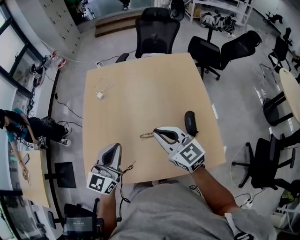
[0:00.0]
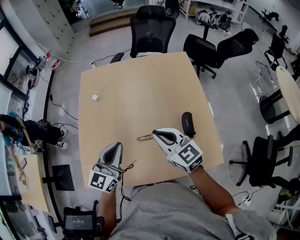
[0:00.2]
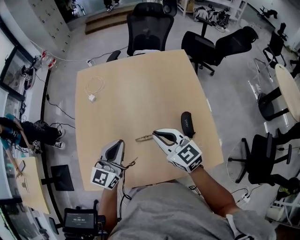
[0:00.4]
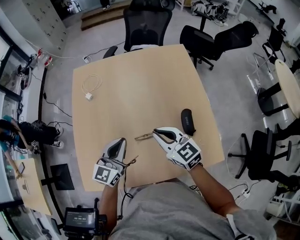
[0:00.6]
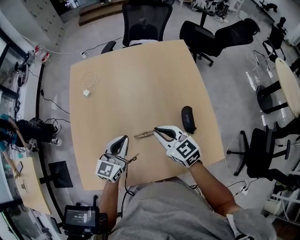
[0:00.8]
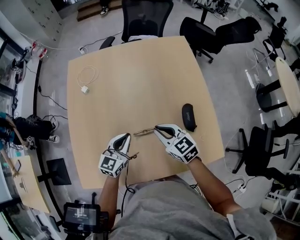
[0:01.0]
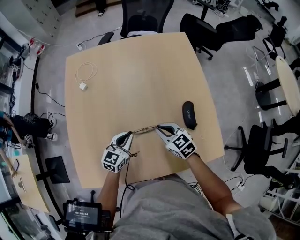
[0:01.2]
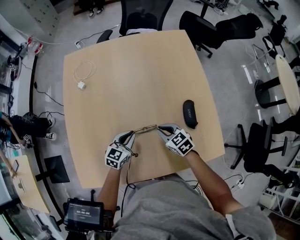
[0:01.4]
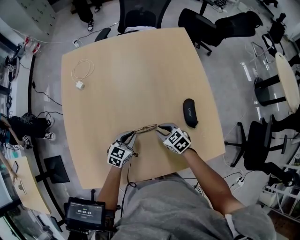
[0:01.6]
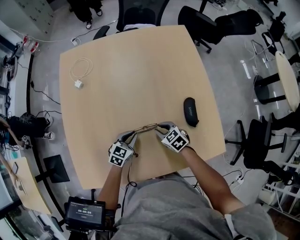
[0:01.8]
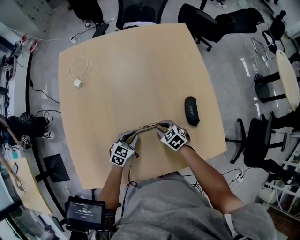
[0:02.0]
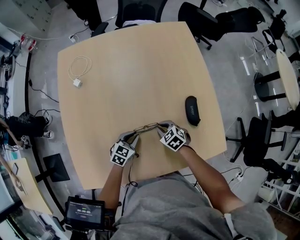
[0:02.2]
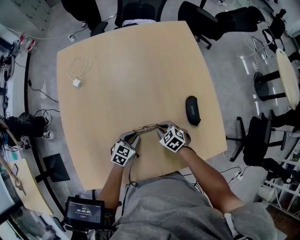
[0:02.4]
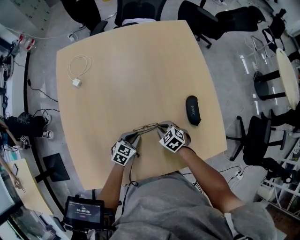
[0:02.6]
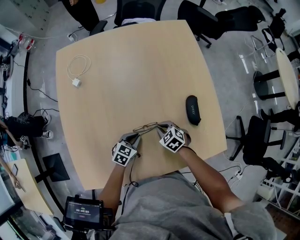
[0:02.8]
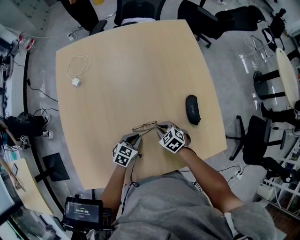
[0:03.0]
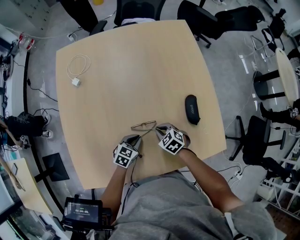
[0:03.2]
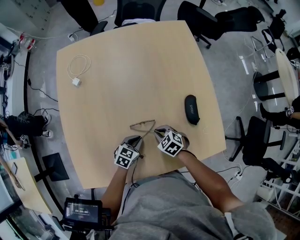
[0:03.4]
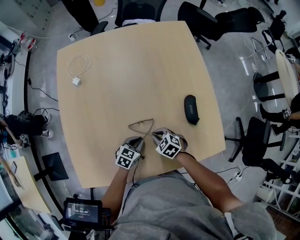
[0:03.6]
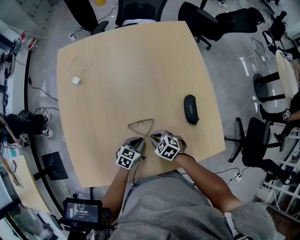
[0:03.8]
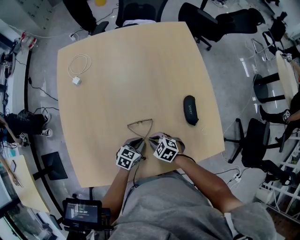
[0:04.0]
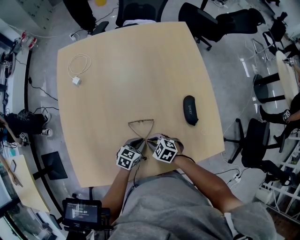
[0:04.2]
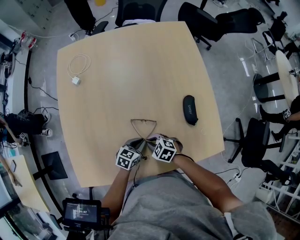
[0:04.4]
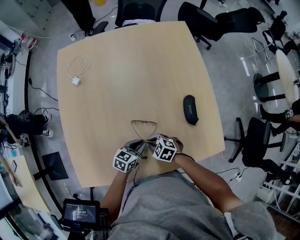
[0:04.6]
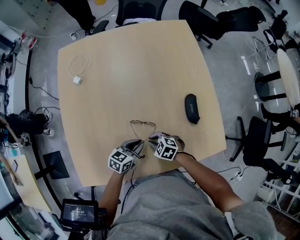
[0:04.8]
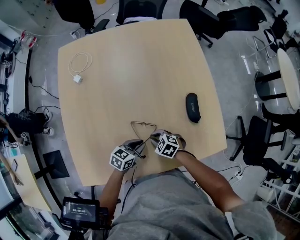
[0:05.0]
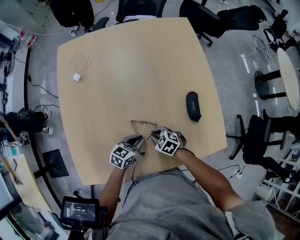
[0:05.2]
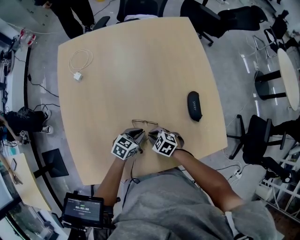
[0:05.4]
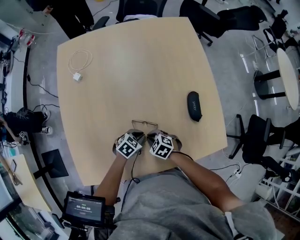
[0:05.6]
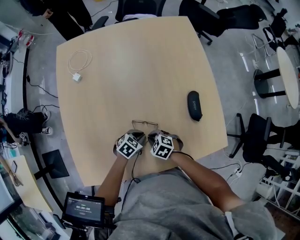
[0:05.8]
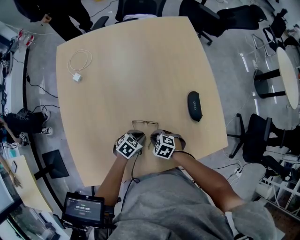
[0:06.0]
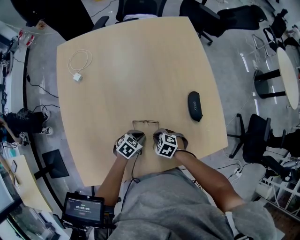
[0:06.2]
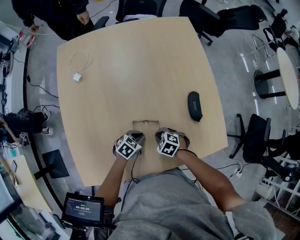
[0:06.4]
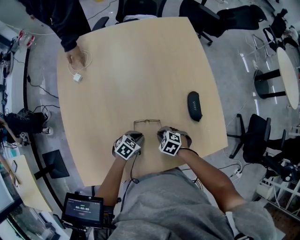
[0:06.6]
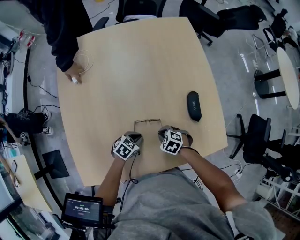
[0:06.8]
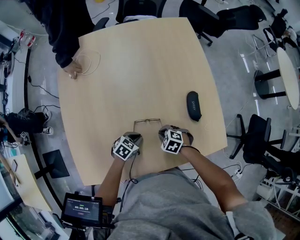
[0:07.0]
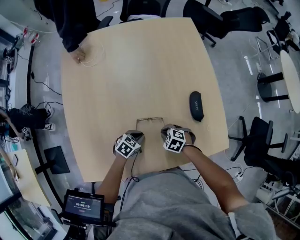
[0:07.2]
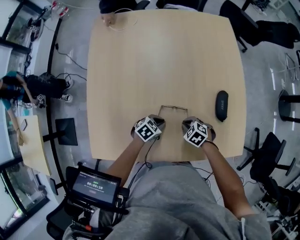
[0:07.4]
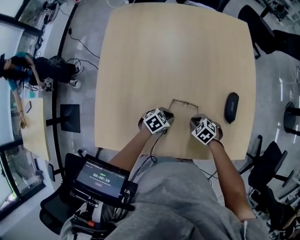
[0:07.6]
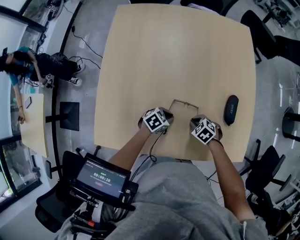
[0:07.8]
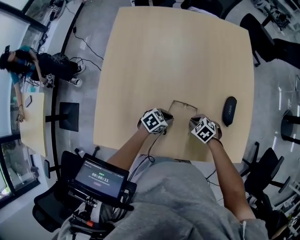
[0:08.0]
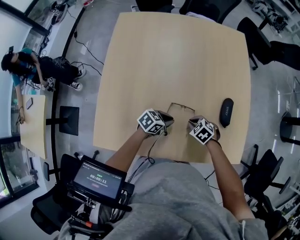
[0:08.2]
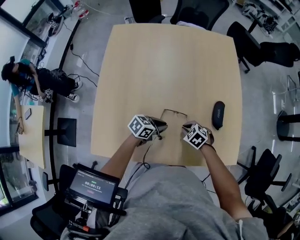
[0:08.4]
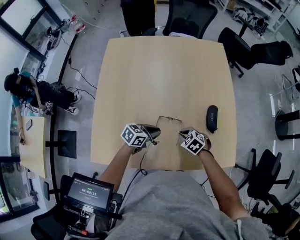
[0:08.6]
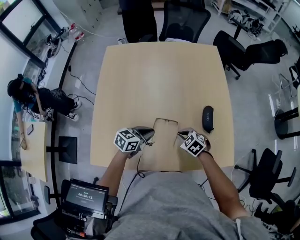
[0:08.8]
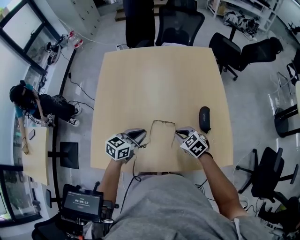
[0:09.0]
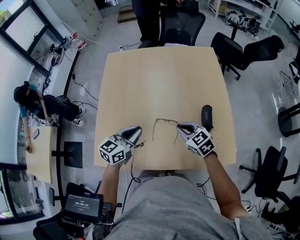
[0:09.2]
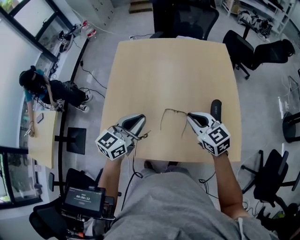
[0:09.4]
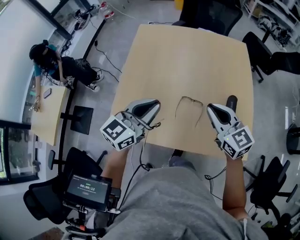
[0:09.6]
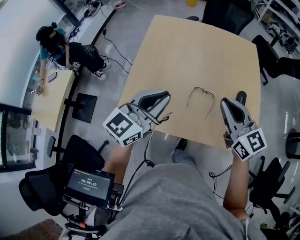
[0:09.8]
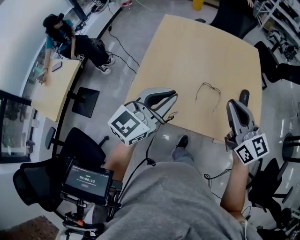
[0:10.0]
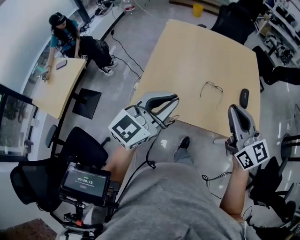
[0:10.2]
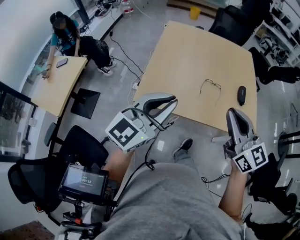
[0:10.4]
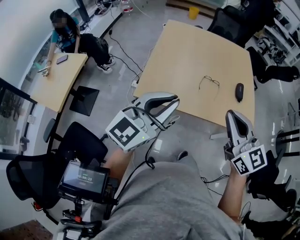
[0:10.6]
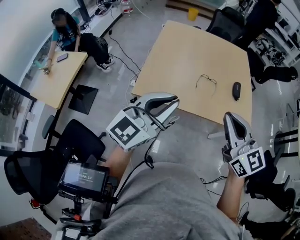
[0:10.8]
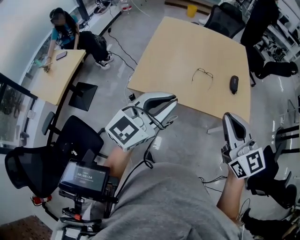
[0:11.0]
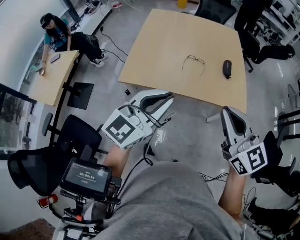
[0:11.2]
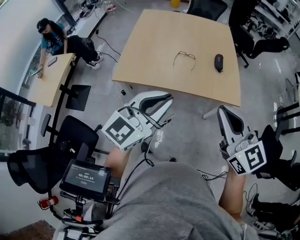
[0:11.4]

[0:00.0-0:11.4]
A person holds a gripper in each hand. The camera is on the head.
0:00.0 to 0:01.4: Both grippers move downward, about 25 cm. The left gripper swivels about 30 degrees. The right gripper angles its fingers downward, by roughly 30 degrees.
0:01.4 to 0:02.8: The two grippers go roughly 10 cm downward.
0:02.8 to 0:04.2: The left gripper changes place by approximately 5 cm; the right gripper shifts by approximately 10 cm.
0:04.2 to 0:05.6: The left gripper turns by about 20 degrees.
0:05.6 to 0:07.2: The right gripper ends up about 10 cm from where it was.
0:07.2 to 0:08.6: The left gripper travels upward by roughly 10 cm, and rotates roughly 20 degrees; the right gripper heads upward, covering approximately 5 cm.
0:08.6 to 0:10.0: The two grippers go some 35 cm upward. The left gripper changes its angle by approximately 50 degrees. Meanwhile the right gripper tips its fingers upward by some 60 degrees.
0:10.0 to 0:11.4: The right gripper shifts some 35 cm backward, while the left gripper moves backward and to the right, roughly 30 cm.

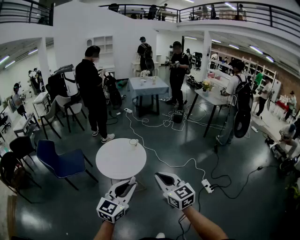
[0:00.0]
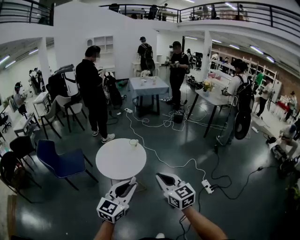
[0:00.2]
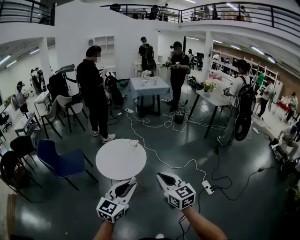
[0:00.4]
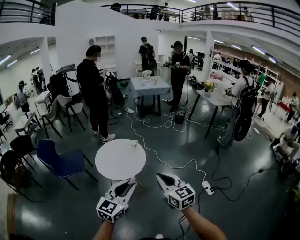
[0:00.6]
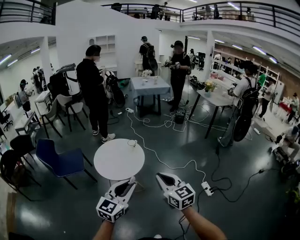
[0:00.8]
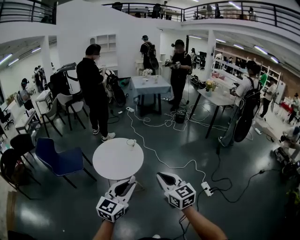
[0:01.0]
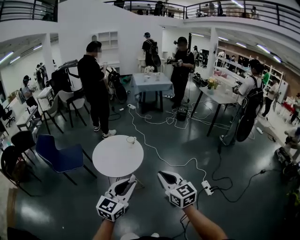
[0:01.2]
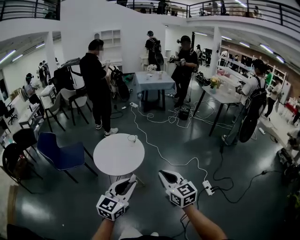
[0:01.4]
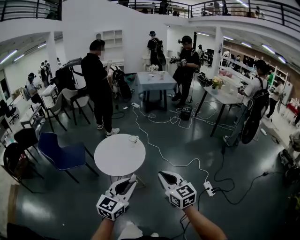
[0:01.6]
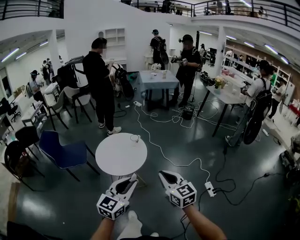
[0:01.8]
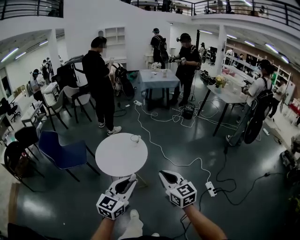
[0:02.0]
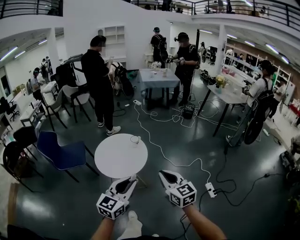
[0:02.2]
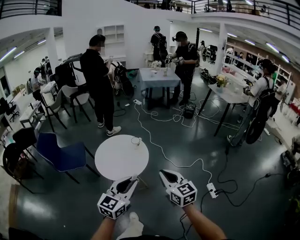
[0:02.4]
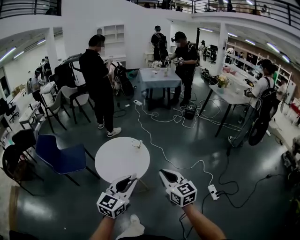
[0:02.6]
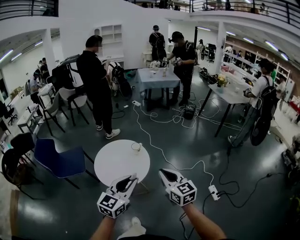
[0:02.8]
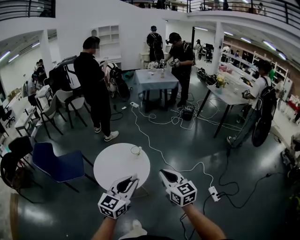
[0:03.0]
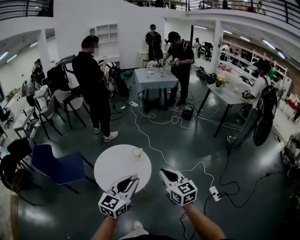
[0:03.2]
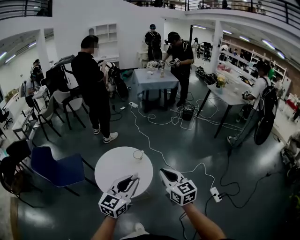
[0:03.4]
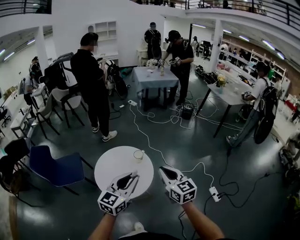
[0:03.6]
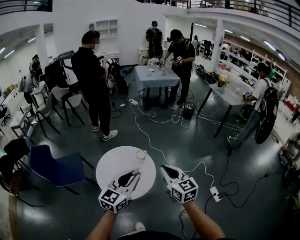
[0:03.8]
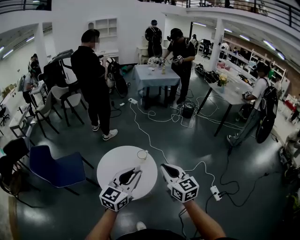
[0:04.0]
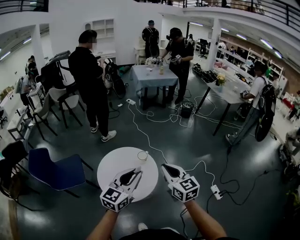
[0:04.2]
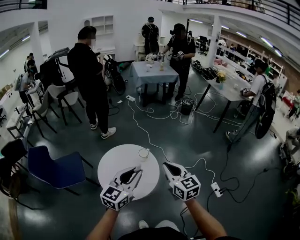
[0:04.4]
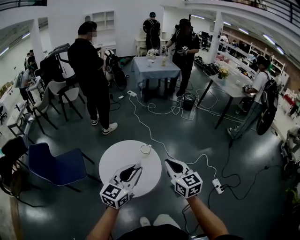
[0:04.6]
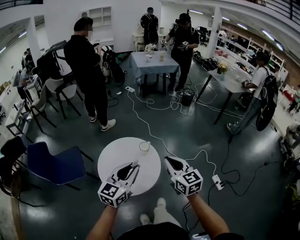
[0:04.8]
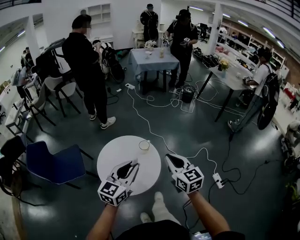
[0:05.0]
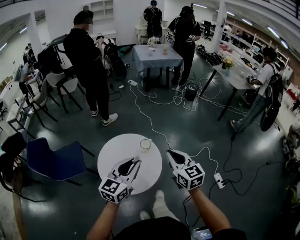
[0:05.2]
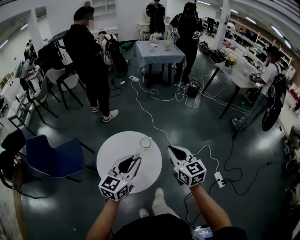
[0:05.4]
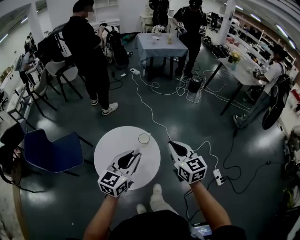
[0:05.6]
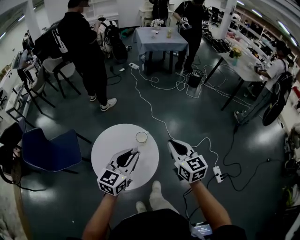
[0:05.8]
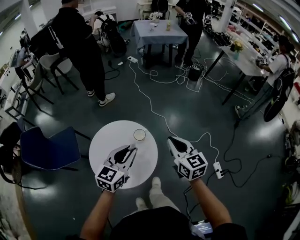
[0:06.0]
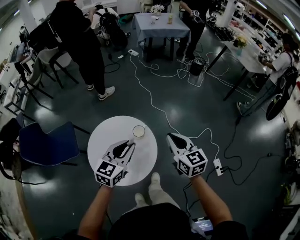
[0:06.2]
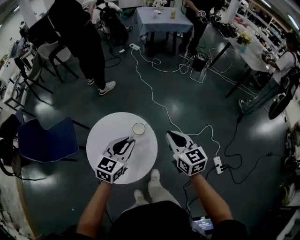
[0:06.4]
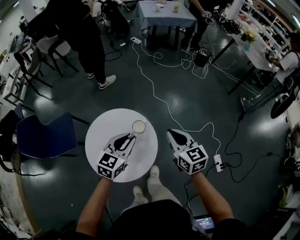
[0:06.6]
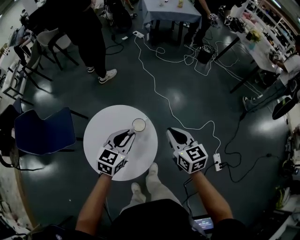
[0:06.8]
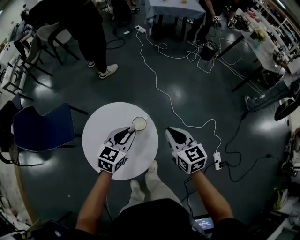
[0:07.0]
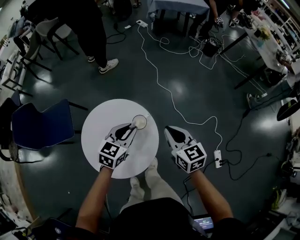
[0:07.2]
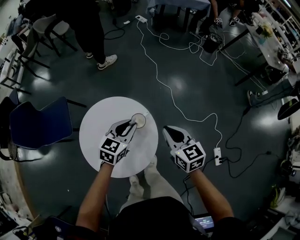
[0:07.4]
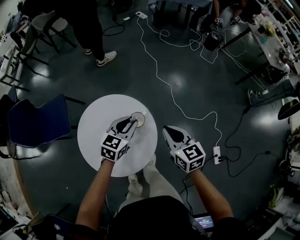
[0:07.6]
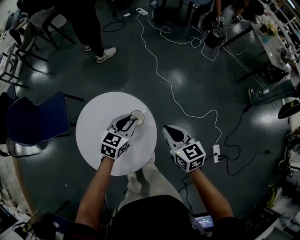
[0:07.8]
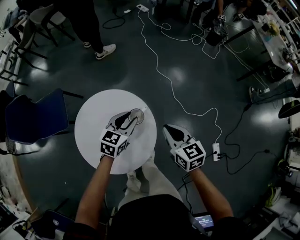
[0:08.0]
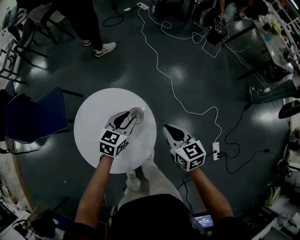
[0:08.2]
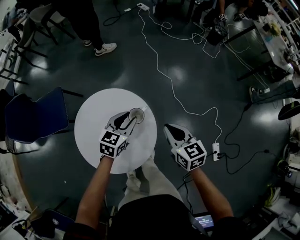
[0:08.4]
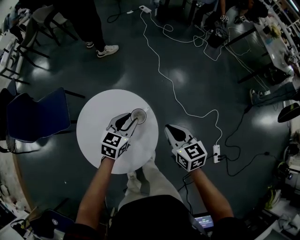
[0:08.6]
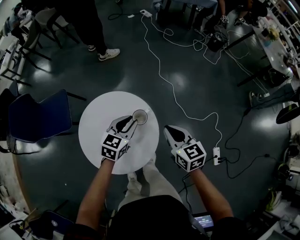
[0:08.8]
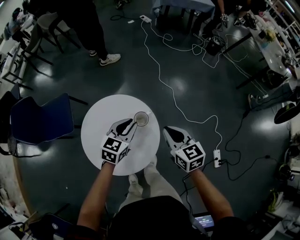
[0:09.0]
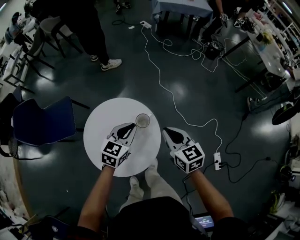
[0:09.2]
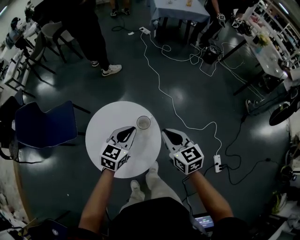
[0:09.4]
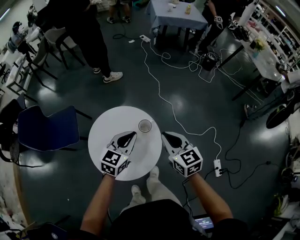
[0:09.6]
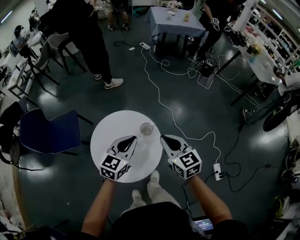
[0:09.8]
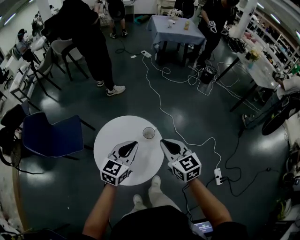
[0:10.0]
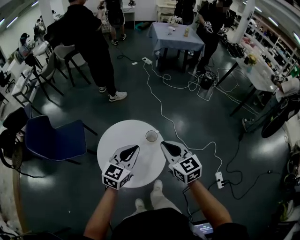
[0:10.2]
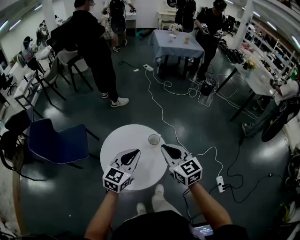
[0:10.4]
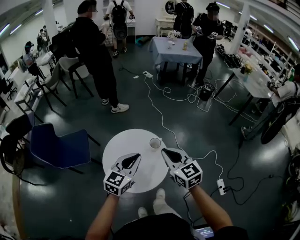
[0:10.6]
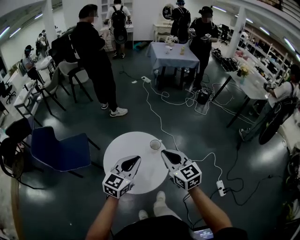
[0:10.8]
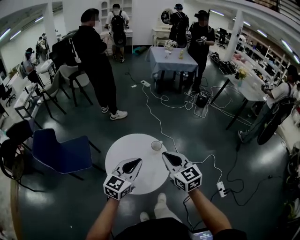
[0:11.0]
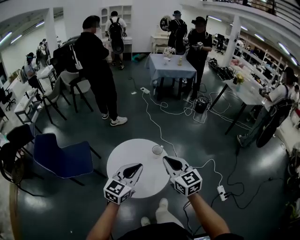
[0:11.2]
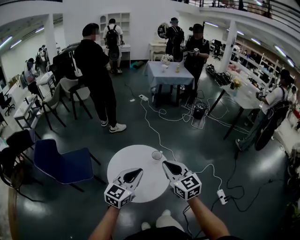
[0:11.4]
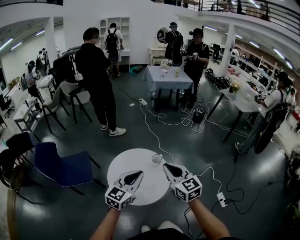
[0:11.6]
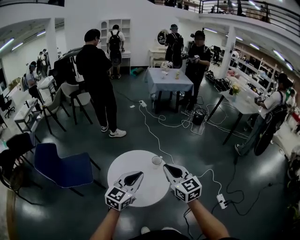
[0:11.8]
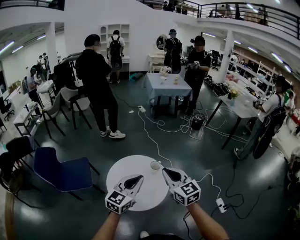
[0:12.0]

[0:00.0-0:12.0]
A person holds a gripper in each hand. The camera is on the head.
0:00.0 to 0:01.6: Both grippers move to the right and forward, roughly 15 cm.
0:01.6 to 0:03.0: Both grippers move forward, approximately 25 cm.
0:03.0 to 0:04.4: Both grippers travel together forward and to the left, about 20 cm.
0:04.4 to 0:06.0: The right gripper shifts approximately 25 cm forward. Meanwhile the left gripper moves forward and downward, approximately 25 cm.
0:06.0 to 0:07.6: The right gripper travels downward and forward by roughly 25 cm. Meanwhile the left gripper heads forward and downward, covering roughly 30 cm.
0:07.6 to 0:09.0: There are only small adjustments of the grippers.
0:09.0 to 0:10.4: The right gripper goes about 30 cm upward, backward and to the left; the left gripper moves backward, upward and to the left, approximately 30 cm.
0:10.4 to 0:12.0: Both grippers travel together backward and upward, about 20 cm.
